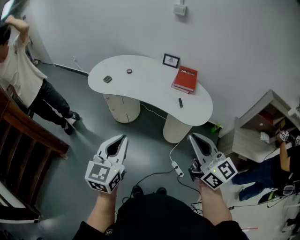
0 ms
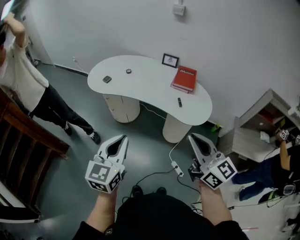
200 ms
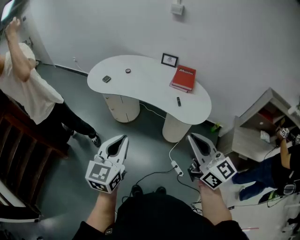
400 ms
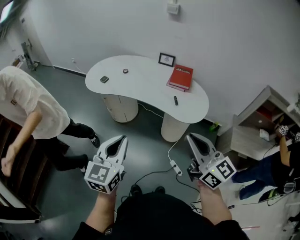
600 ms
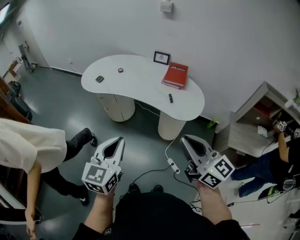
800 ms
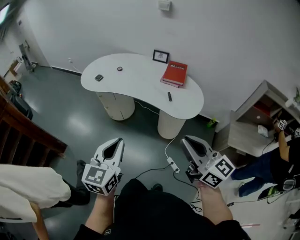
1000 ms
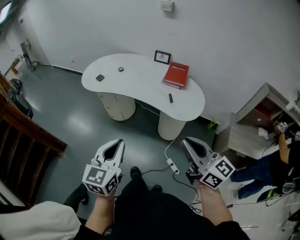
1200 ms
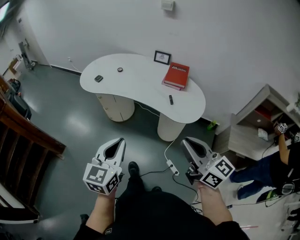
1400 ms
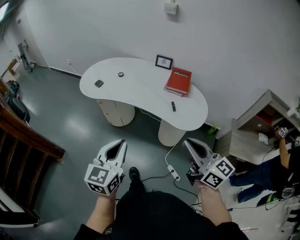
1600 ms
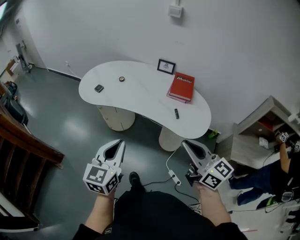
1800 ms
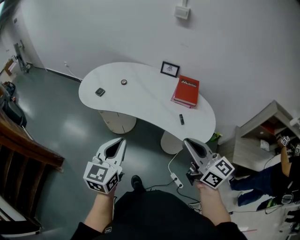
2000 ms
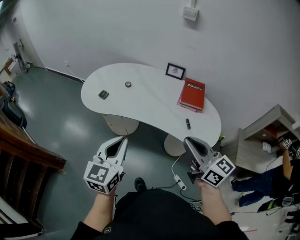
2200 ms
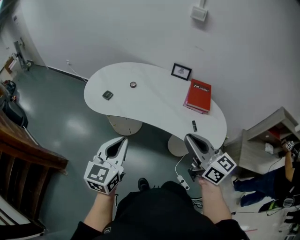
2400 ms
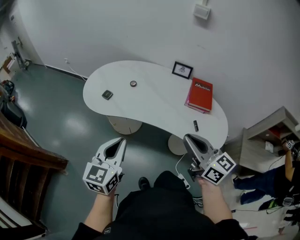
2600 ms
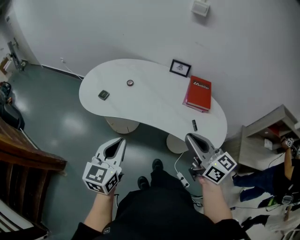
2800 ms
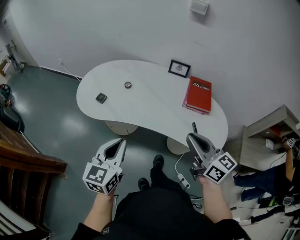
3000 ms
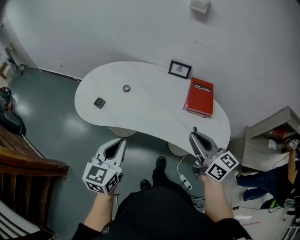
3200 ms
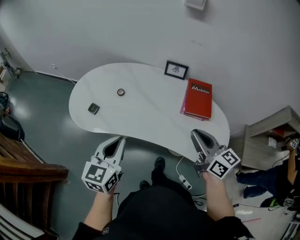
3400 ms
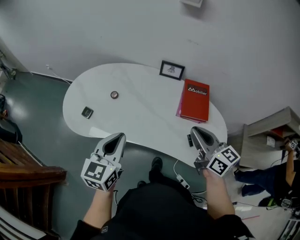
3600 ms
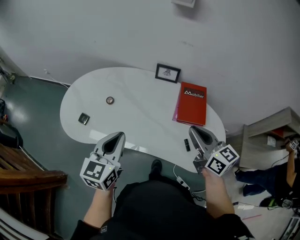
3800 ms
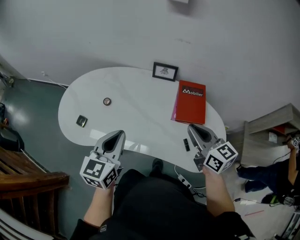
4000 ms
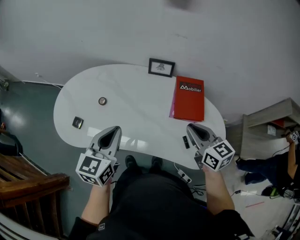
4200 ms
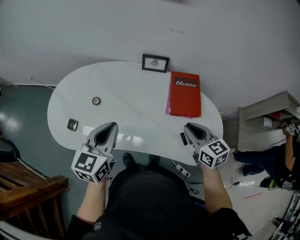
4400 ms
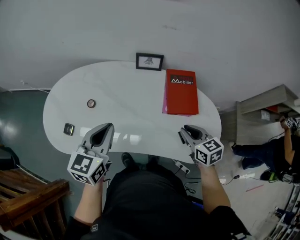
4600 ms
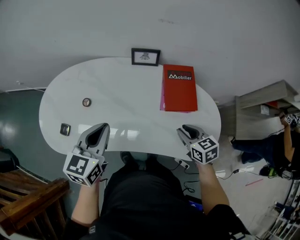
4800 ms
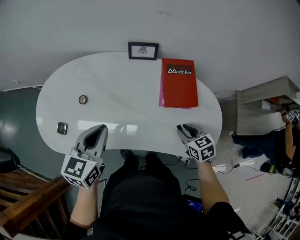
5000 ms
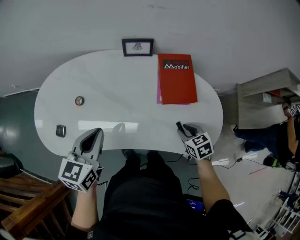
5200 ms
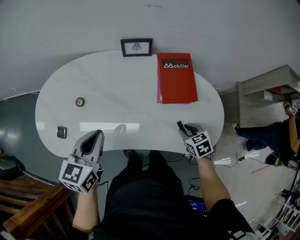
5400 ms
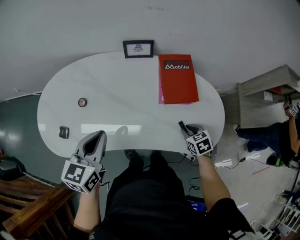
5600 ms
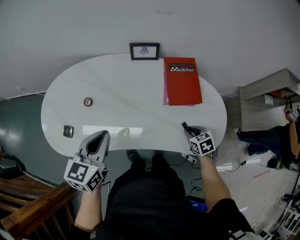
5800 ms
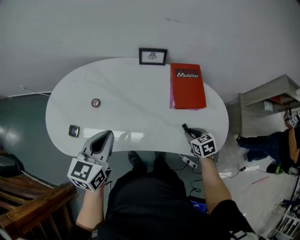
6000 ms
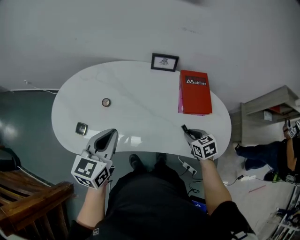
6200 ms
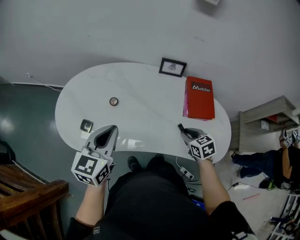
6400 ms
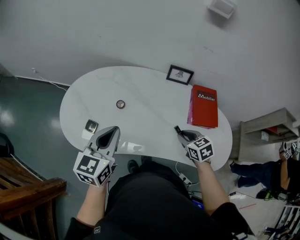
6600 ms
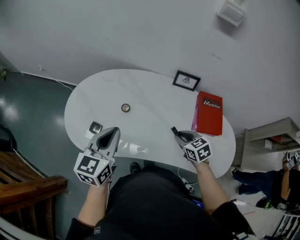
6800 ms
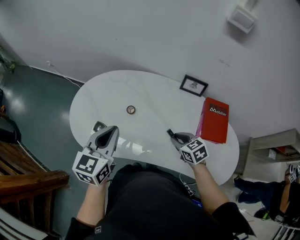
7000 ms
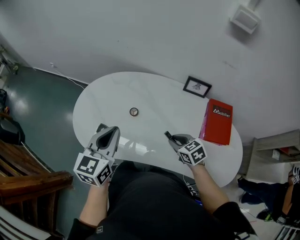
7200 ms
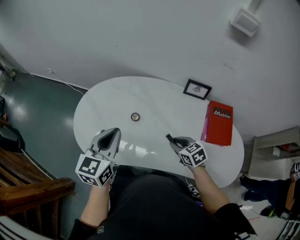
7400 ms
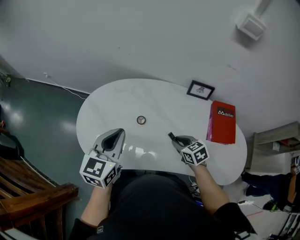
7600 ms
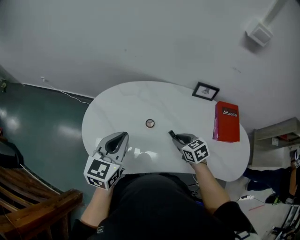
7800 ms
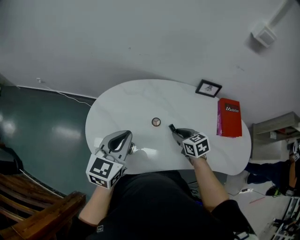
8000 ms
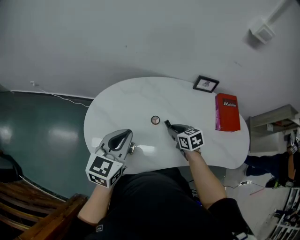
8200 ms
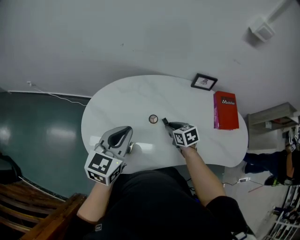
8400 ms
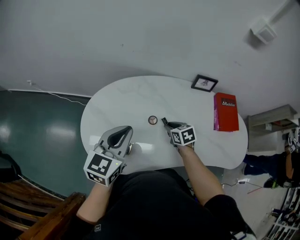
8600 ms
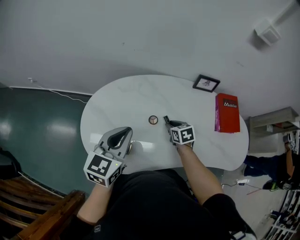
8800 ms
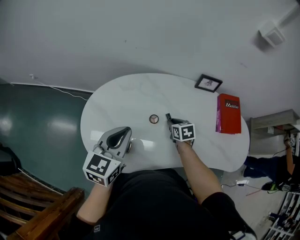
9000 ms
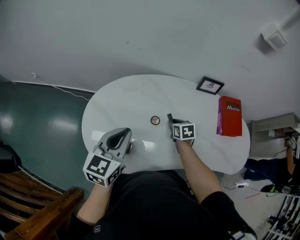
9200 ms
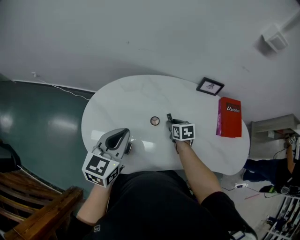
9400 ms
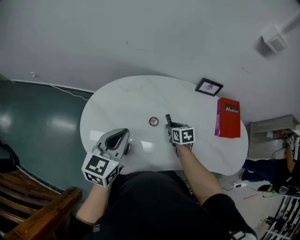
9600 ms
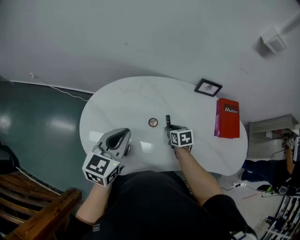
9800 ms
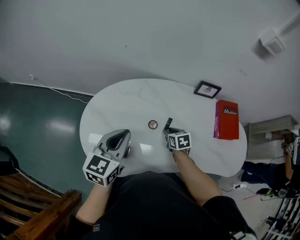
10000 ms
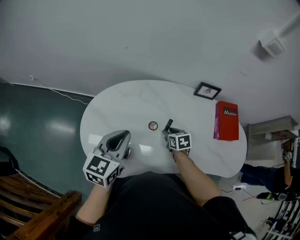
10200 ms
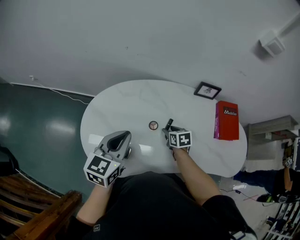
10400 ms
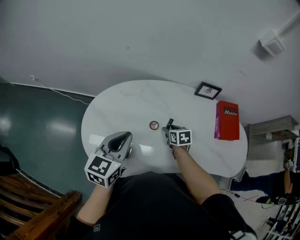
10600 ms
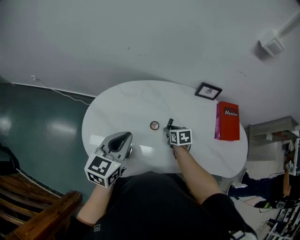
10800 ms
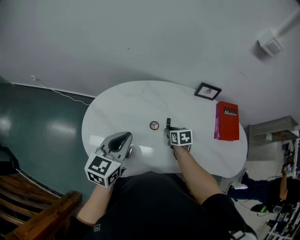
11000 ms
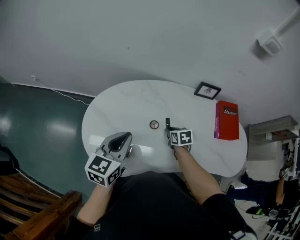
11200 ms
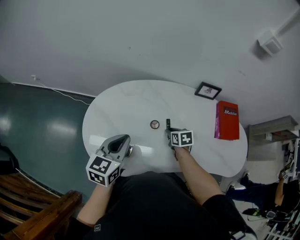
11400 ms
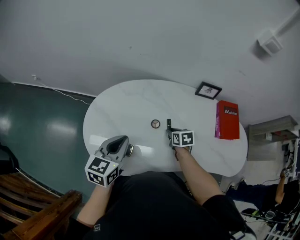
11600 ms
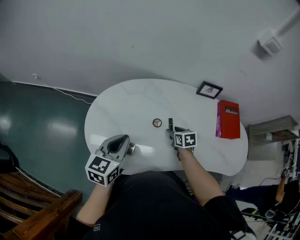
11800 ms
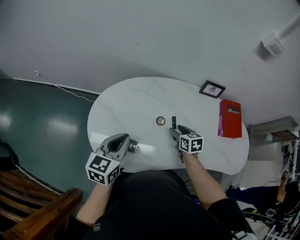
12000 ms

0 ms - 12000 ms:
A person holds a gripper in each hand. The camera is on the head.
0 ms - 1600 ms: The right gripper shifts by approximately 5 cm; the left gripper moves to the right, approximately 5 cm.
1600 ms - 3000 ms: Both grippers move forward, about 25 cm.
3000 ms - 4400 ms: The left gripper is displaced forward by about 25 cm, while the right gripper goes roughly 25 cm forward, downward and to the right, and rotates approximately 30 degrees.
4400 ms - 6000 ms: The right gripper travels downward by roughly 15 cm, and turns by roughly 30 degrees; the left gripper moves approximately 5 cm.
6000 ms - 7600 ms: The left gripper shifts approximately 20 cm to the left and forward. The right gripper goes roughly 30 cm to the left and forward, and rotates some 20 degrees.
7600 ms - 9000 ms: The left gripper travels to the left by approximately 5 cm. Meanwhile the right gripper heads forward, to the left and downward, covering some 15 cm, and turns by about 30 degrees.
9000 ms - 10400 ms: The grippers make only small movements.
10400 ms - 12000 ms: The left gripper ends up approximately 5 cm from where it was. The right gripper shifts by about 5 cm.

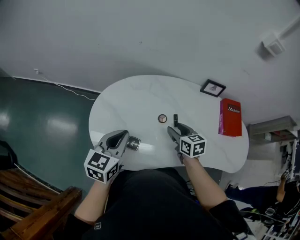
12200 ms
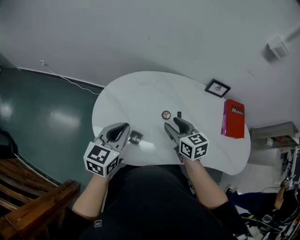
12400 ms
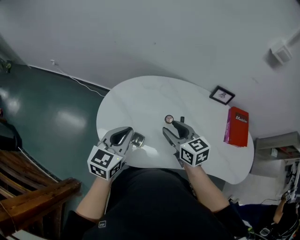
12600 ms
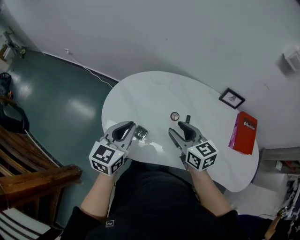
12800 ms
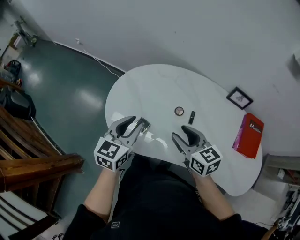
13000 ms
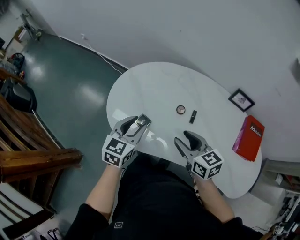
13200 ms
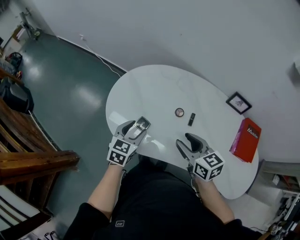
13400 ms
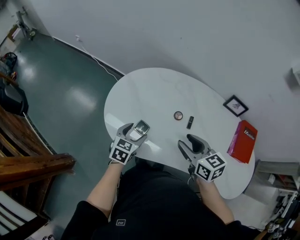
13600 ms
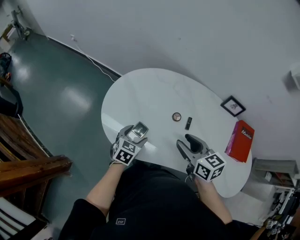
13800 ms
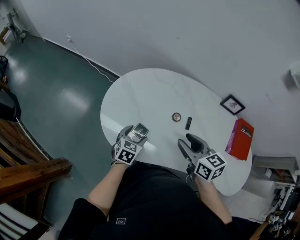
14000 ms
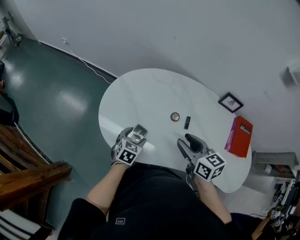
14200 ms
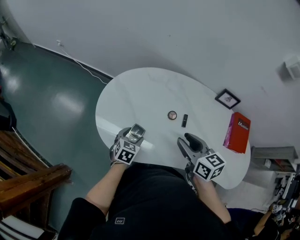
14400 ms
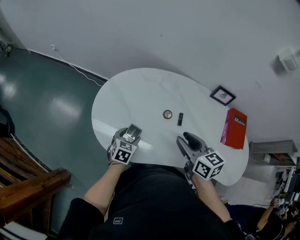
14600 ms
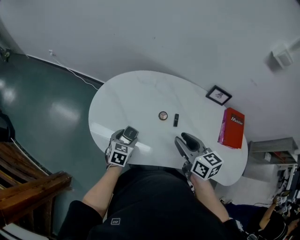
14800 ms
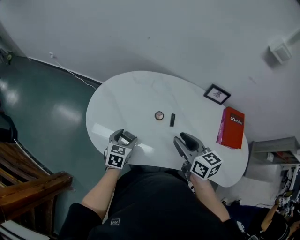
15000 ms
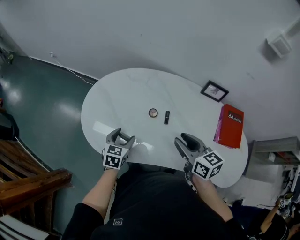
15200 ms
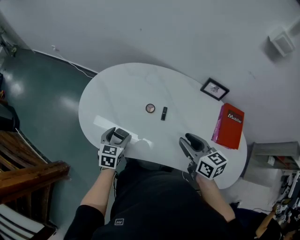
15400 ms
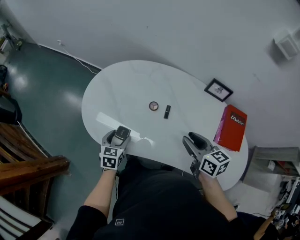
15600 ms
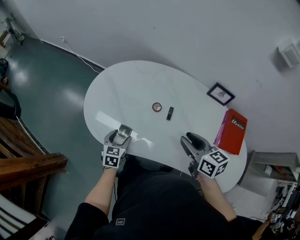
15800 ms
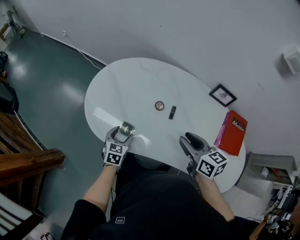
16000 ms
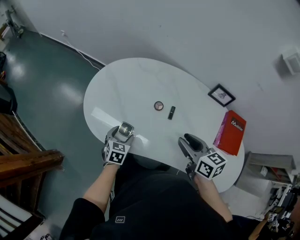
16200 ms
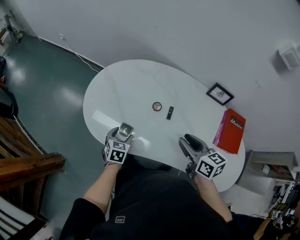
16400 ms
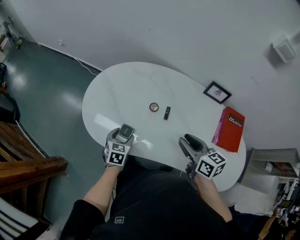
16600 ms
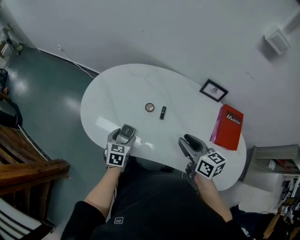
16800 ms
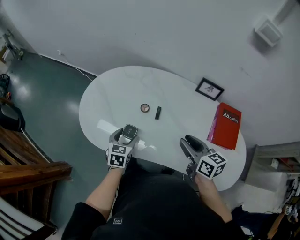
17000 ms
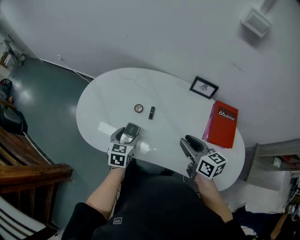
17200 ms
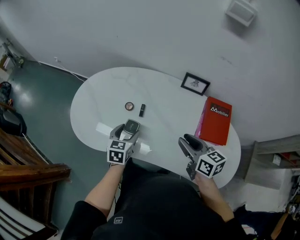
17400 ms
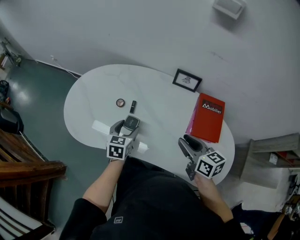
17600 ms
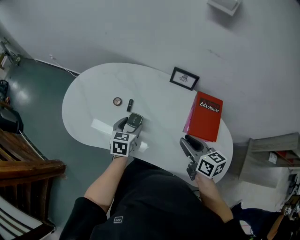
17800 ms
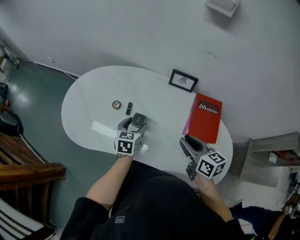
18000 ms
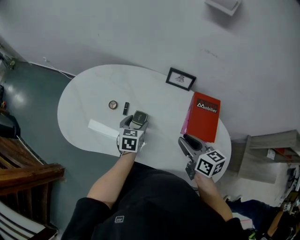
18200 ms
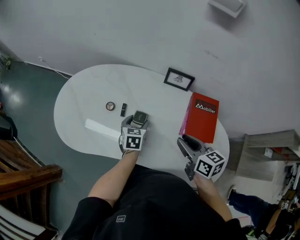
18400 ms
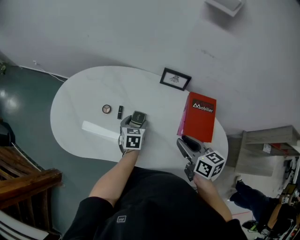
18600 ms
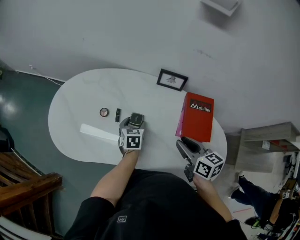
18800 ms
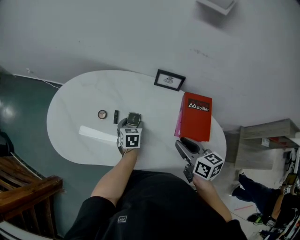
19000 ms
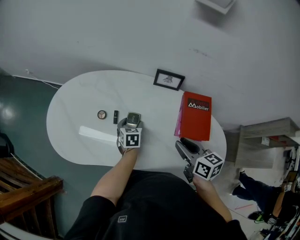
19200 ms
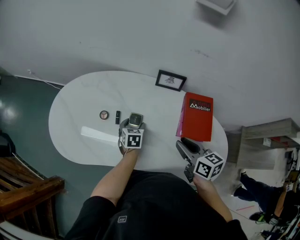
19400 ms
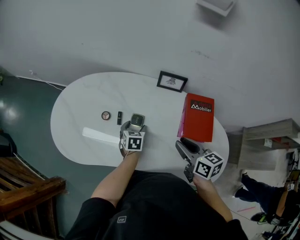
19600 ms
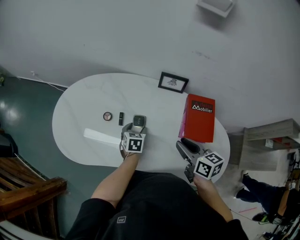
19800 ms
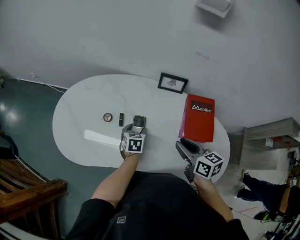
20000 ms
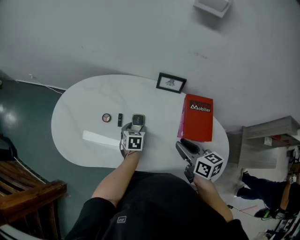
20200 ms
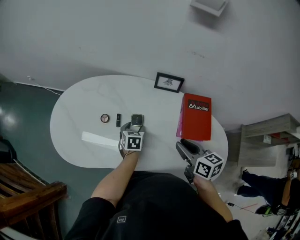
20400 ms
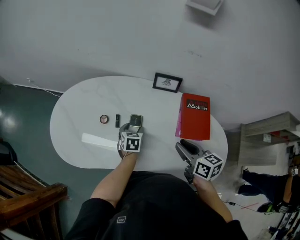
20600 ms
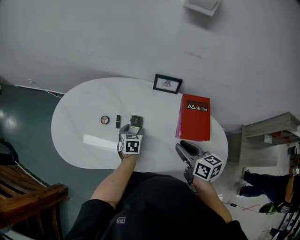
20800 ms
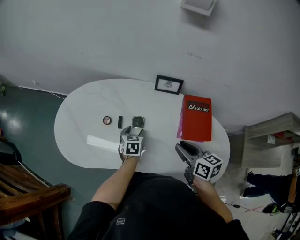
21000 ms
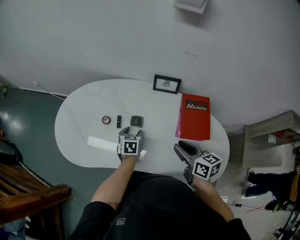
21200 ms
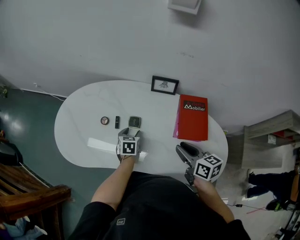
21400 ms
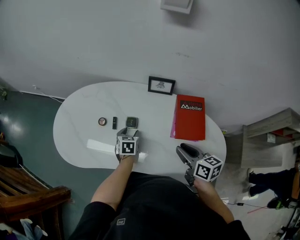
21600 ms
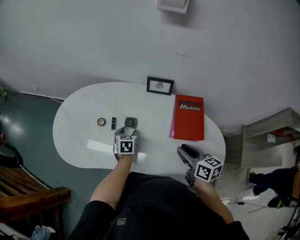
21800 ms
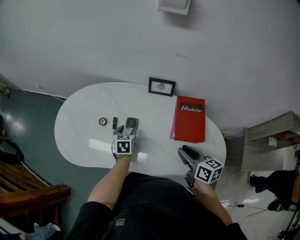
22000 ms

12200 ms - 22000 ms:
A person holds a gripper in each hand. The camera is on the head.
12200 ms - 13600 ms: The left gripper heads downward and backward, covering roughly 15 cm, turns by about 20 degrees, and opens up. Meanwhile the right gripper shifts some 10 cm upward and backward, and swivels roughly 30 degrees.
13600 ms - 15000 ms: The right gripper changes place by approximately 5 cm.
15000 ms - 16400 ms: The right gripper is displaced to the right by approximately 5 cm. The left gripper heads downward, covering approximately 5 cm.
16400 ms - 17800 ms: The right gripper is displaced to the right and backward by approximately 25 cm; the left gripper travels to the right by approximately 25 cm.
17800 ms - 19200 ms: The left gripper heads downward, forward and to the right, covering approximately 15 cm.
19200 ms - 20600 ms: The grippers move only a little.
20600 ms - 22000 ms: The right gripper heads to the right, covering roughly 5 cm.

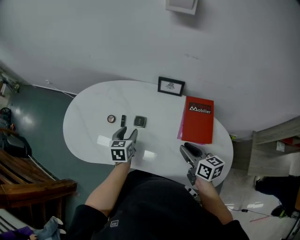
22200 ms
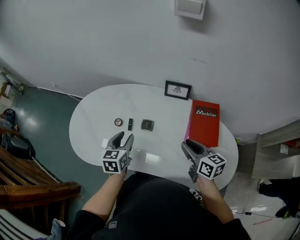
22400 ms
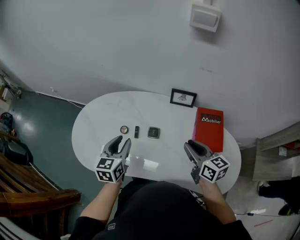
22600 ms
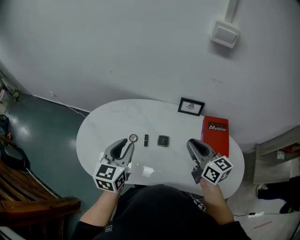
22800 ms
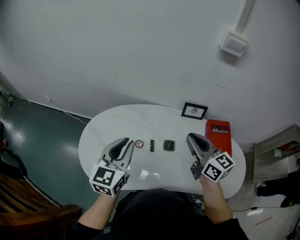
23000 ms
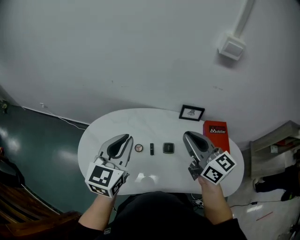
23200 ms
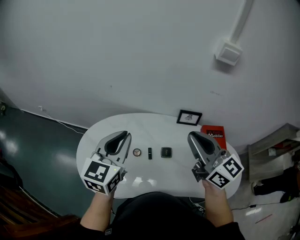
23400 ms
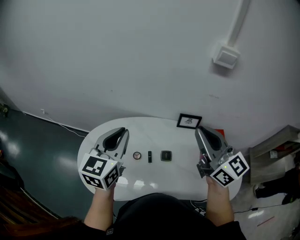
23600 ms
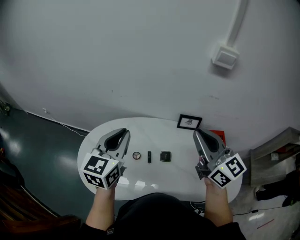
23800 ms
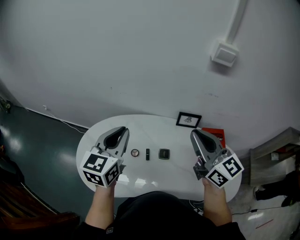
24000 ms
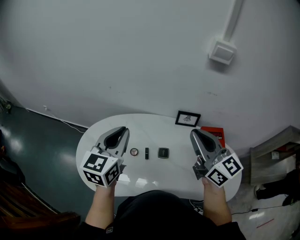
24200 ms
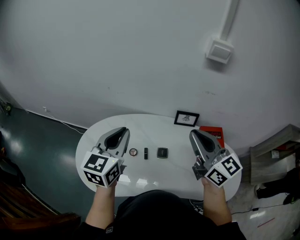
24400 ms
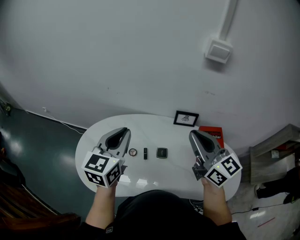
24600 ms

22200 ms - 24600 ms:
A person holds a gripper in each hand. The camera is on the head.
22200 ms - 23400 ms: The left gripper is displaced upward and to the left by some 35 cm, turns by approximately 40 degrees, and closes up, while the right gripper heads upward, to the left and forward, covering about 35 cm, and changes its angle by some 40 degrees.
23400 ms - 24600 ms: The right gripper shifts roughly 5 cm to the right.
